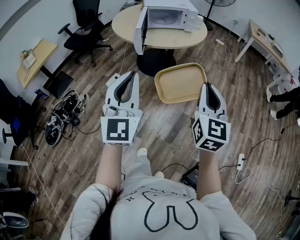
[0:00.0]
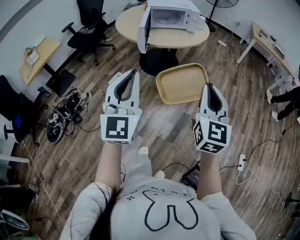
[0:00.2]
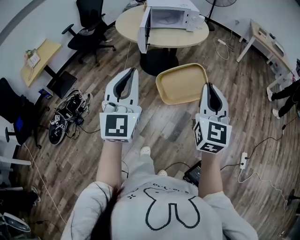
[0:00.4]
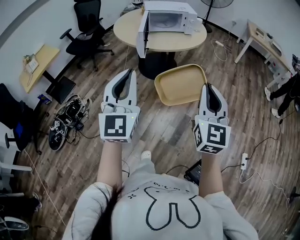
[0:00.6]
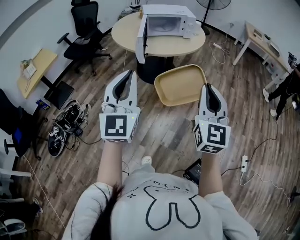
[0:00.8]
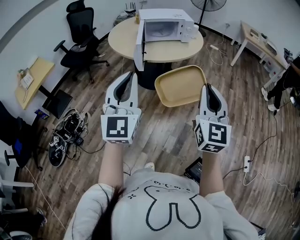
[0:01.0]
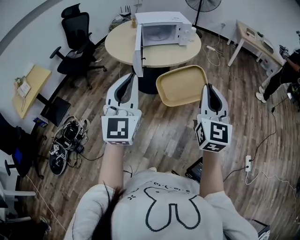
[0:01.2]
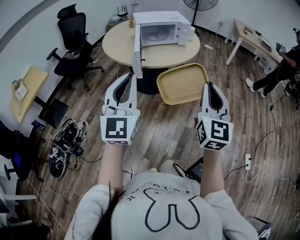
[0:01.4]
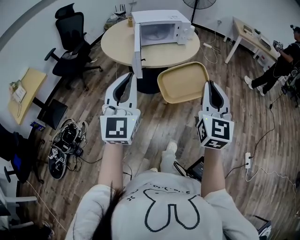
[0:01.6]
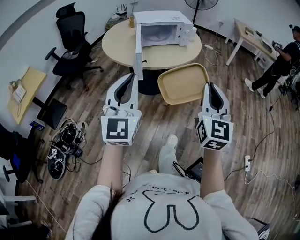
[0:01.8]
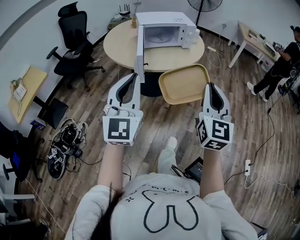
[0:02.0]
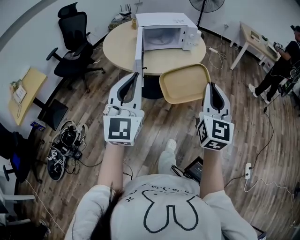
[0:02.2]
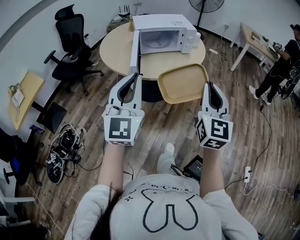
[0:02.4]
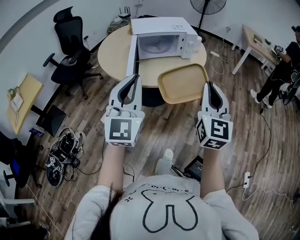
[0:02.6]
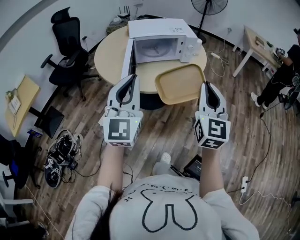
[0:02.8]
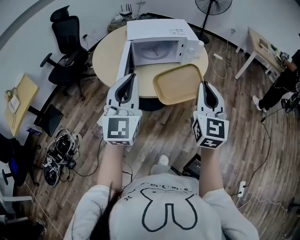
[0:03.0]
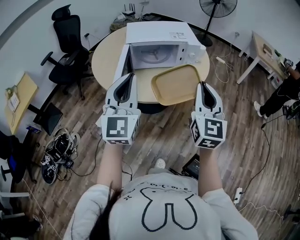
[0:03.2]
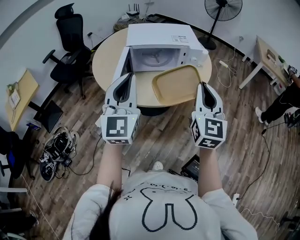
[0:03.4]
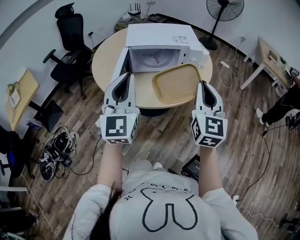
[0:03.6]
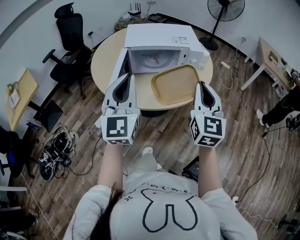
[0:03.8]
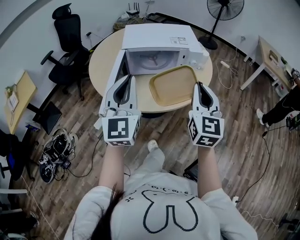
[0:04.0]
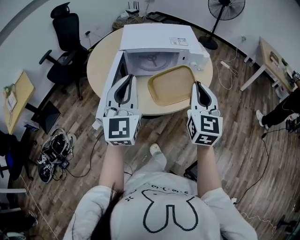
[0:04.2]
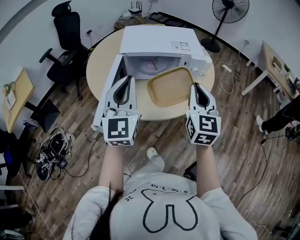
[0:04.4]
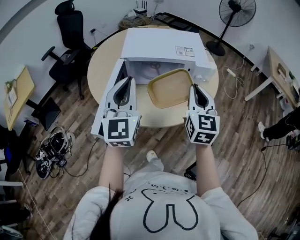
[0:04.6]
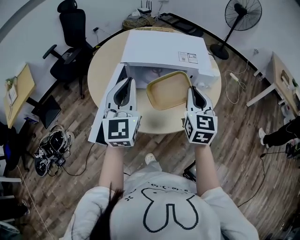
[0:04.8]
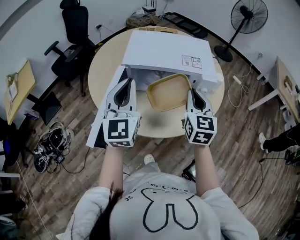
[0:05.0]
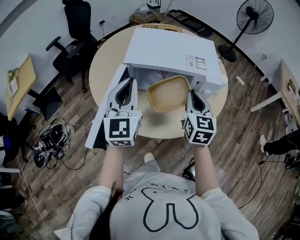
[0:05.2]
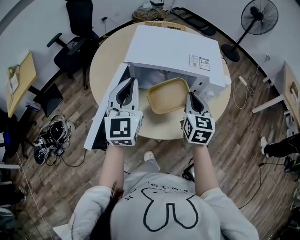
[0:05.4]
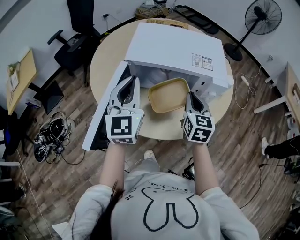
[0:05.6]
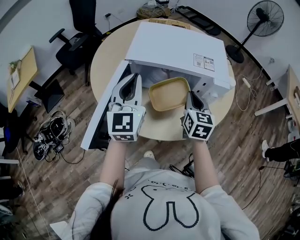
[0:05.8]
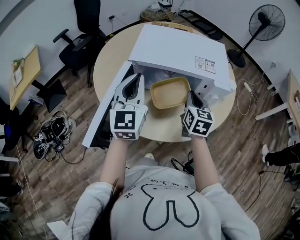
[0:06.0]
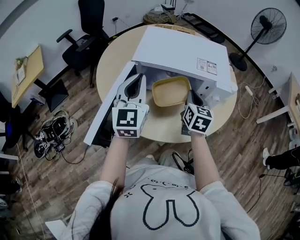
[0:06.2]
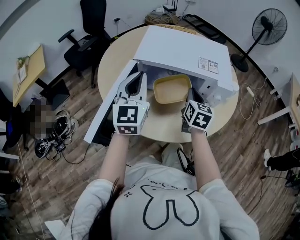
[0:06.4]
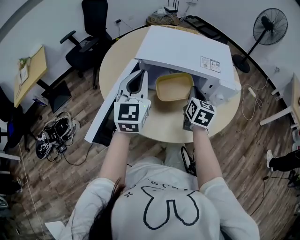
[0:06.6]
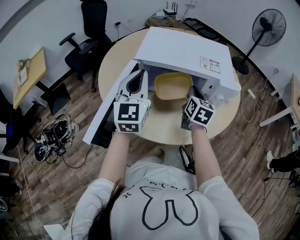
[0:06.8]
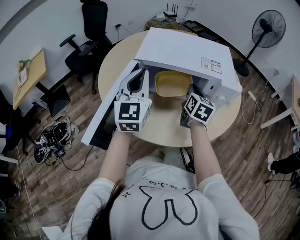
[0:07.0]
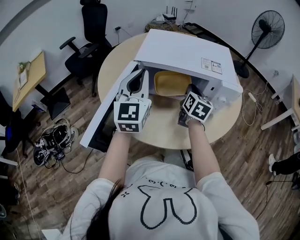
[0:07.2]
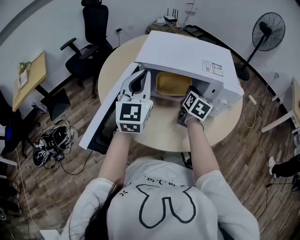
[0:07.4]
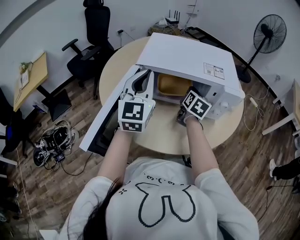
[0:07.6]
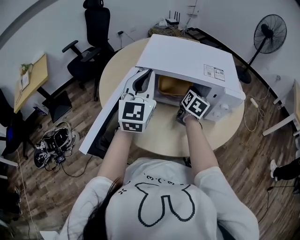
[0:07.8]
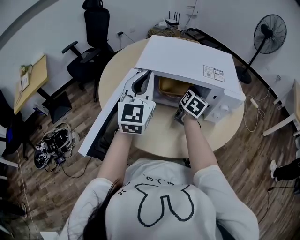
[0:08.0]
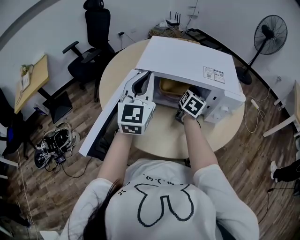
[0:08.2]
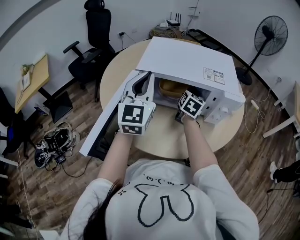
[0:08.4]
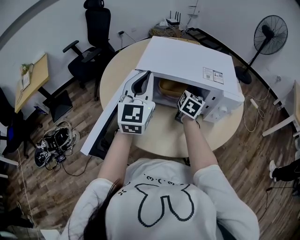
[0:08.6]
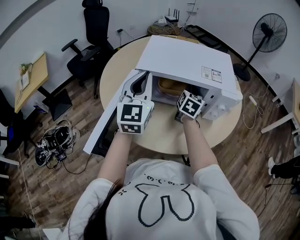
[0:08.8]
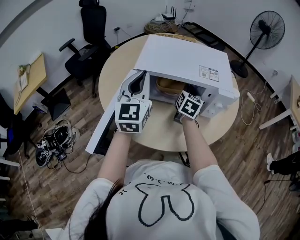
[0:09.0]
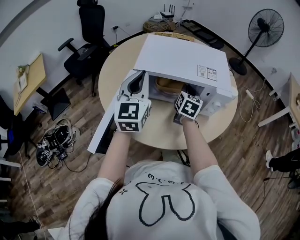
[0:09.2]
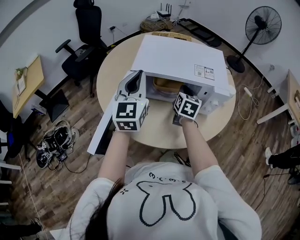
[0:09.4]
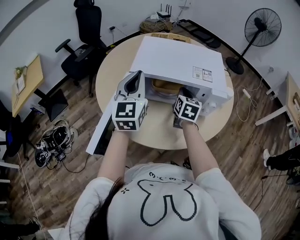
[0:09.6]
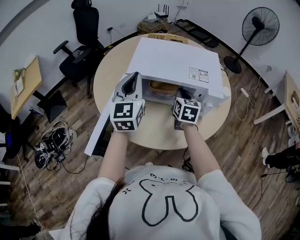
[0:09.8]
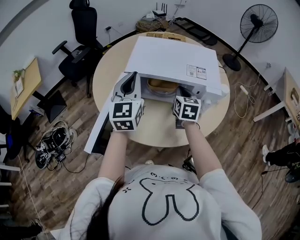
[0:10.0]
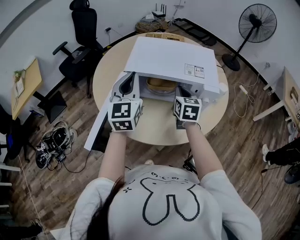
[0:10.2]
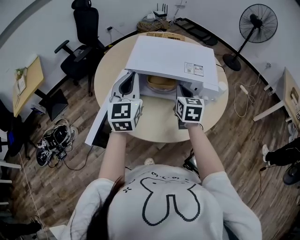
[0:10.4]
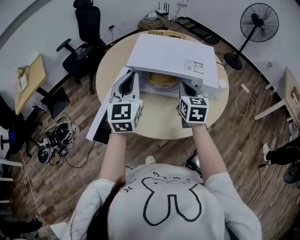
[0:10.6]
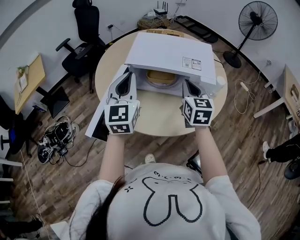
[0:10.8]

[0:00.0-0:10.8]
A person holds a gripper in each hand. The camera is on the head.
0:00.0 to 0:01.6: The grippers both shift forward and to the left by roughly 15 cm.
0:01.6 to 0:03.0: The grippers both shift forward by approximately 30 cm.
0:03.0 to 0:04.6: Both grippers travel together forward, approximately 25 cm.
0:04.6 to 0:06.2: The left gripper is displaced forward and downward by approximately 10 cm. The right gripper moves forward and downward, approximately 20 cm, and changes its angle by about 20 degrees.
0:06.2 to 0:07.8: The right gripper is displaced forward and downward by approximately 10 cm.
0:07.8 to 0:09.2: The grippers make only small movements.
0:09.2 to 0:10.8: The left gripper travels backward by approximately 5 cm, while the right gripper goes about 15 cm upward and backward, and rotates approximately 20 degrees.

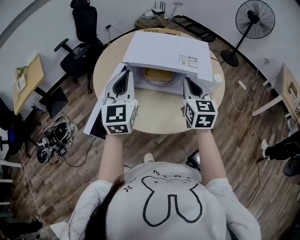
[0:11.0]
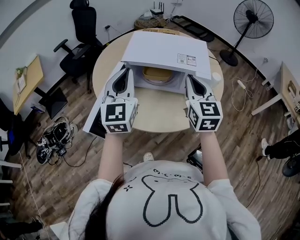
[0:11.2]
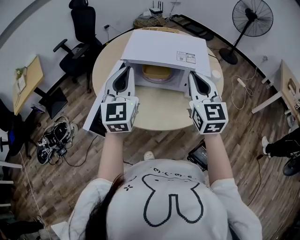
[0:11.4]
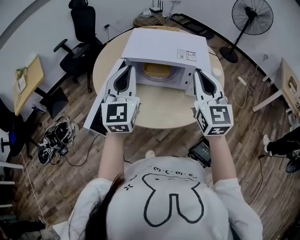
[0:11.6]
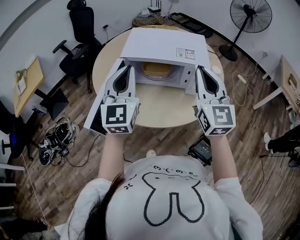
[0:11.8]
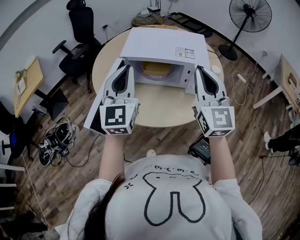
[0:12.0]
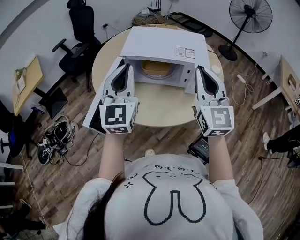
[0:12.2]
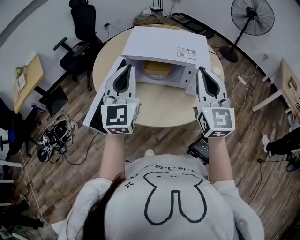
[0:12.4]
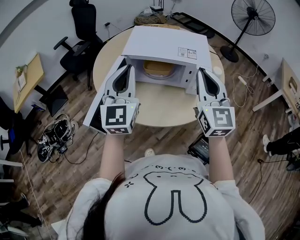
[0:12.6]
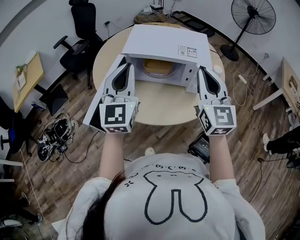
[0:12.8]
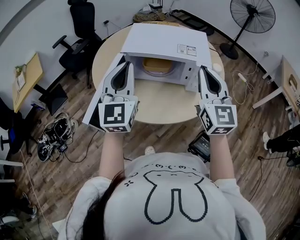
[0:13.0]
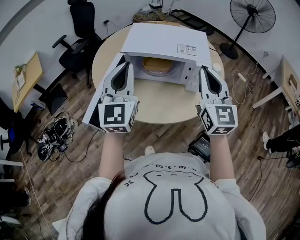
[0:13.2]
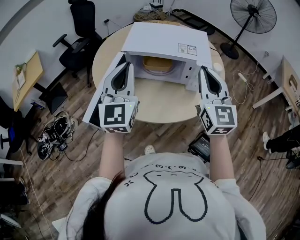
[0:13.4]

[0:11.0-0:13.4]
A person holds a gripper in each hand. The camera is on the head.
0:11.0 to 0:12.2: The right gripper travels upward and backward by some 10 cm, and swivels approximately 20 degrees.
0:12.2 to 0:13.4: The grippers make only small movements.

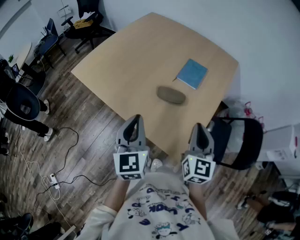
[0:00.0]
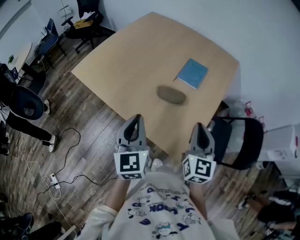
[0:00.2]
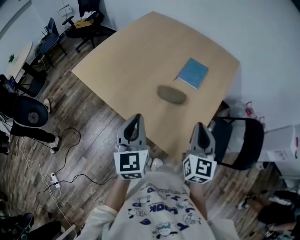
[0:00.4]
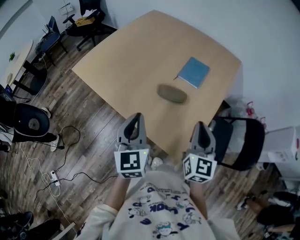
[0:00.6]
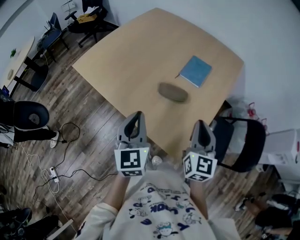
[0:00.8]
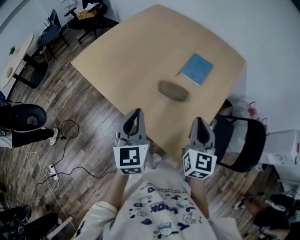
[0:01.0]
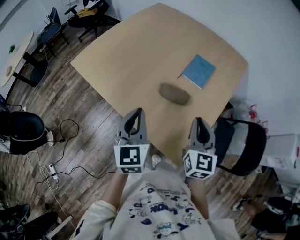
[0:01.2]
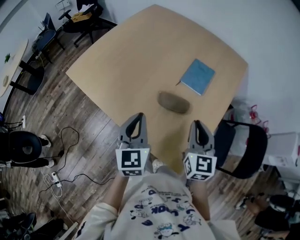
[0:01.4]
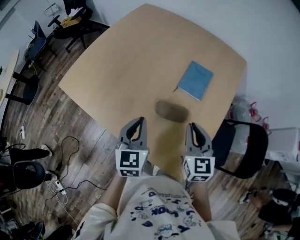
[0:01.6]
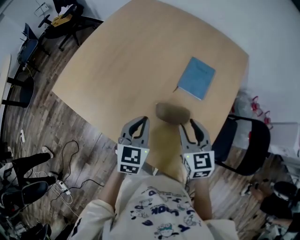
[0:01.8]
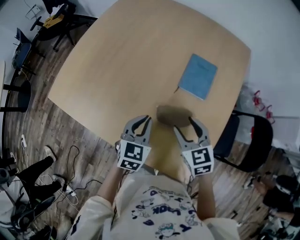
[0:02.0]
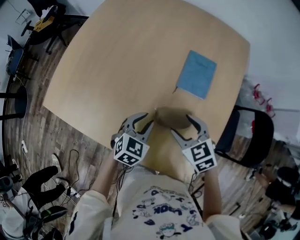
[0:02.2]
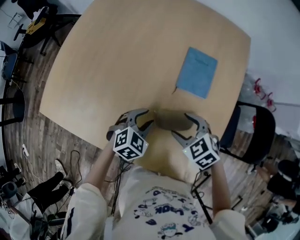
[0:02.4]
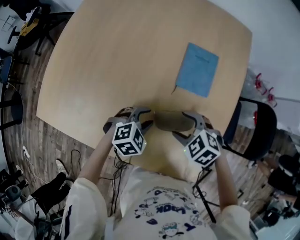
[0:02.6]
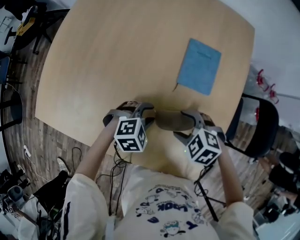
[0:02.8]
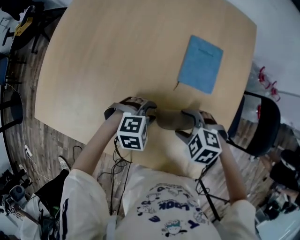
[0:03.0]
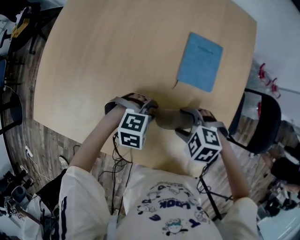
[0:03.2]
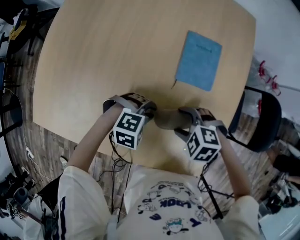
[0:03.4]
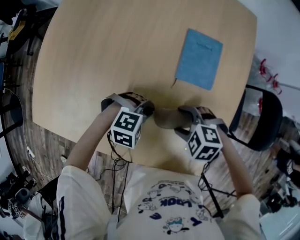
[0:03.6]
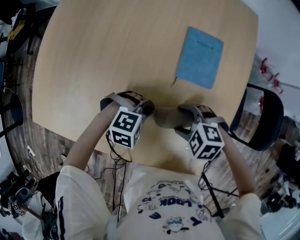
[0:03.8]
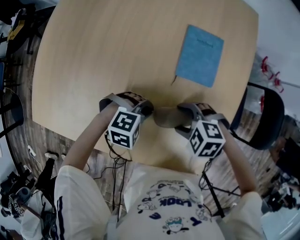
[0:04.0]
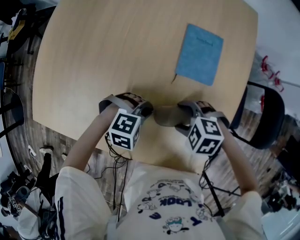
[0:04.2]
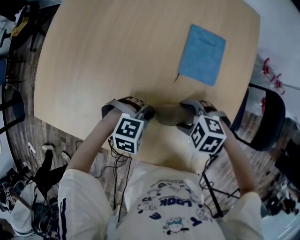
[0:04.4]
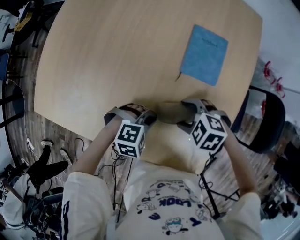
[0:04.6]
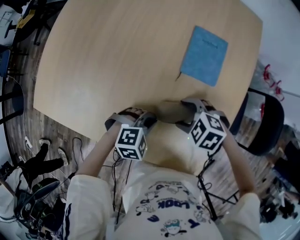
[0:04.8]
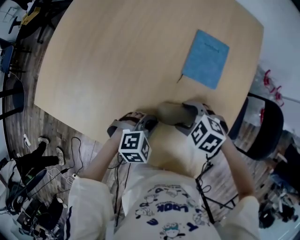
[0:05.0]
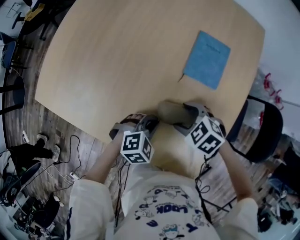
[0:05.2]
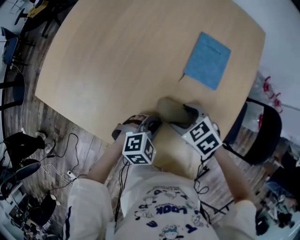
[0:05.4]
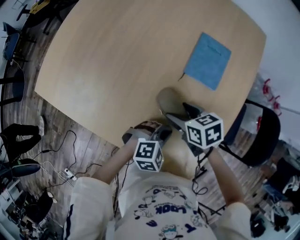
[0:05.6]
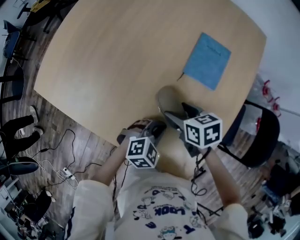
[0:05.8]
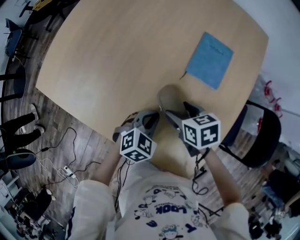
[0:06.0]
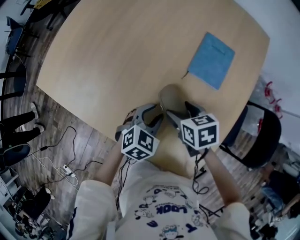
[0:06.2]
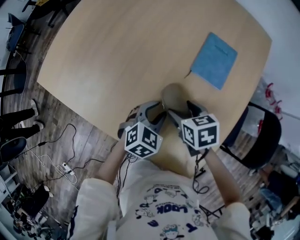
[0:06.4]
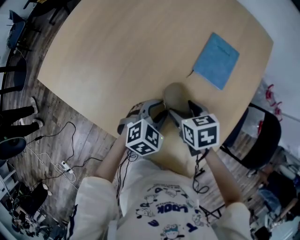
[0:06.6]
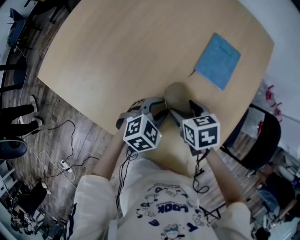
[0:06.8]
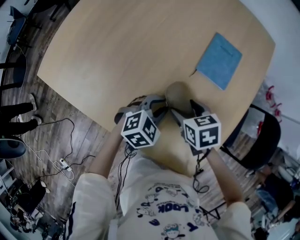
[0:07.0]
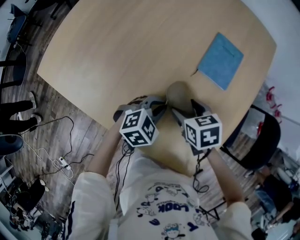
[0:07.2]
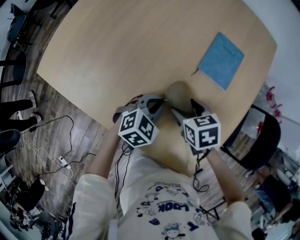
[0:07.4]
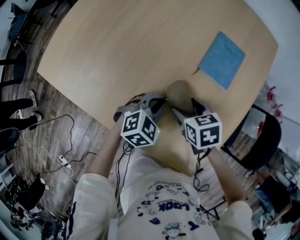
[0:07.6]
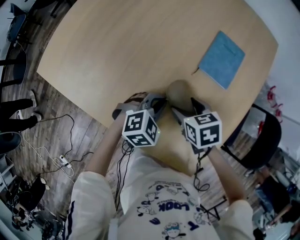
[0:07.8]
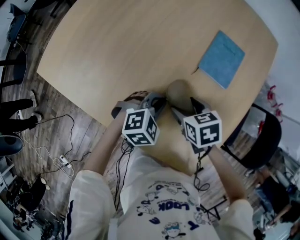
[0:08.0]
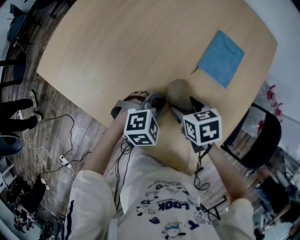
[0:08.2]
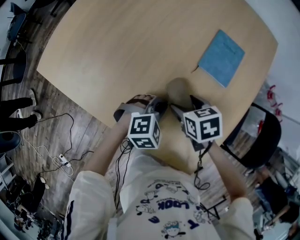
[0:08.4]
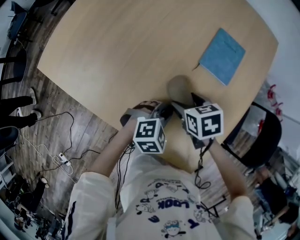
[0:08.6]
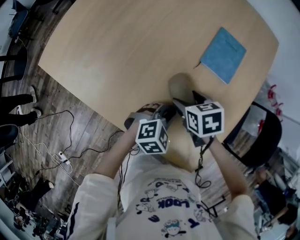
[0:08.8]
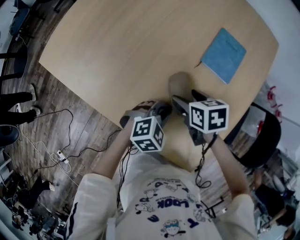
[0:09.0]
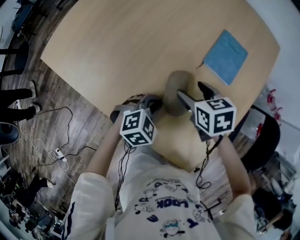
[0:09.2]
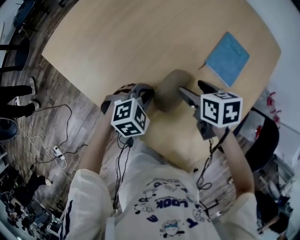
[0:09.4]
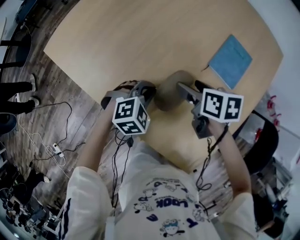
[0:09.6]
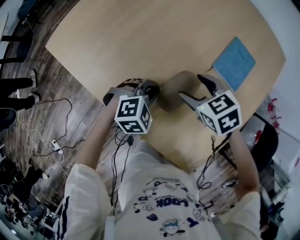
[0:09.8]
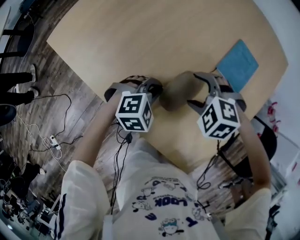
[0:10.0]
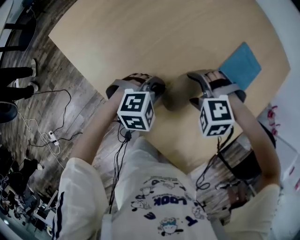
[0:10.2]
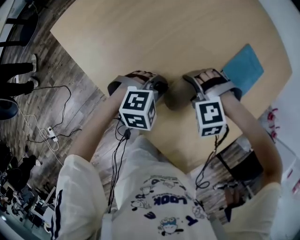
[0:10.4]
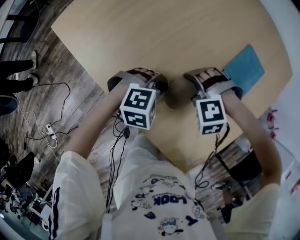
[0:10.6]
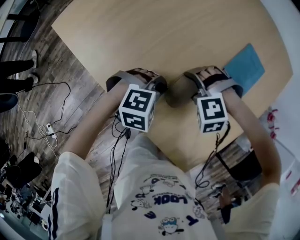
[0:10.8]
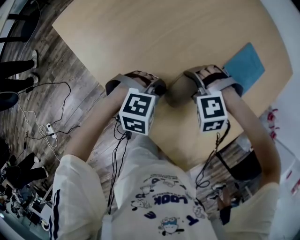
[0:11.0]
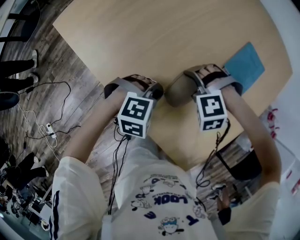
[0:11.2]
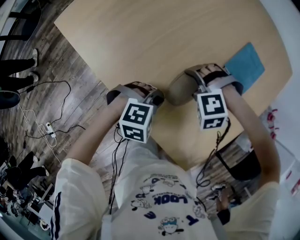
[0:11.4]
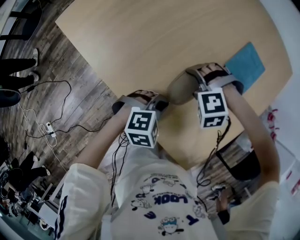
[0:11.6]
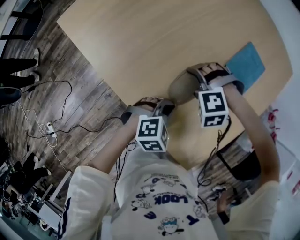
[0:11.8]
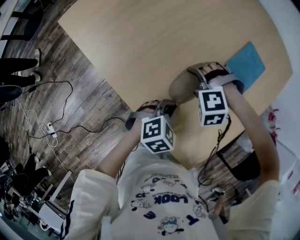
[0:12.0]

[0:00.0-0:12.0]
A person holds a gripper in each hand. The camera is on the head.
0:00.0 to 0:01.6: The grippers both shift forward and downward by roughly 15 cm.
0:01.6 to 0:03.0: The two grippers go some 20 cm downward. The left gripper tilts its fingers roughly 40 degrees downward, and opens. The right gripper angles its fingers downward, by roughly 50 degrees, and opens up.
0:03.0 to 0:04.4: The left gripper closes.
0:04.4 to 0:06.0: The left gripper rotates around the line of its fingers by roughly 50 degrees, counterclockwise from behind, while the right gripper twists approximately 50 degrees clockwise, seen from behind.
0:06.0 to 0:07.6: The left gripper opens, then closes once more.
0:07.6 to 0:09.0: The left gripper goes some 5 cm backward.
0:09.0 to 0:10.4: The right gripper changes place by roughly 5 cm, and twists about 110 degrees counterclockwise, seen from behind, while the left gripper shifts by about 10 cm.
0:10.4 to 0:12.0: The left gripper changes place by approximately 10 cm, and changes its angle by about 30 degrees.
